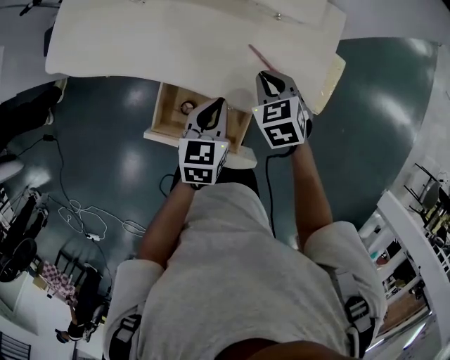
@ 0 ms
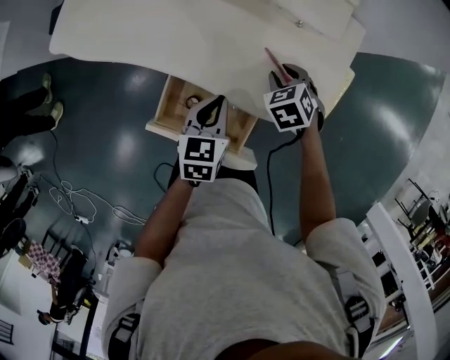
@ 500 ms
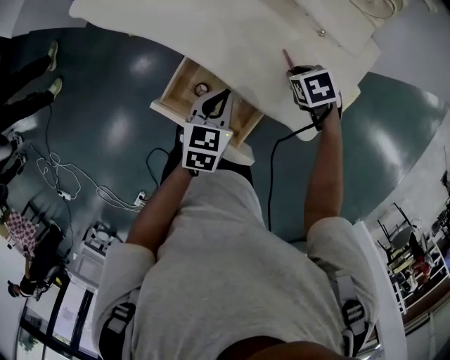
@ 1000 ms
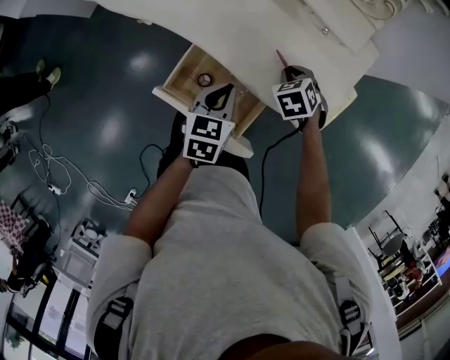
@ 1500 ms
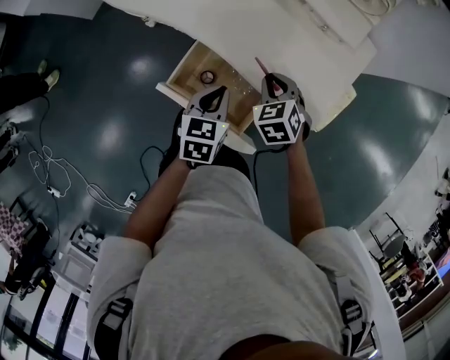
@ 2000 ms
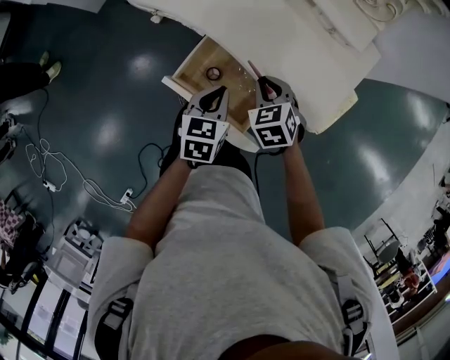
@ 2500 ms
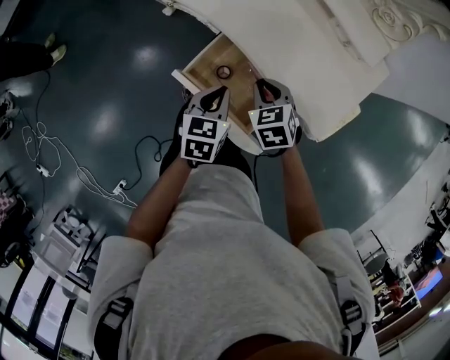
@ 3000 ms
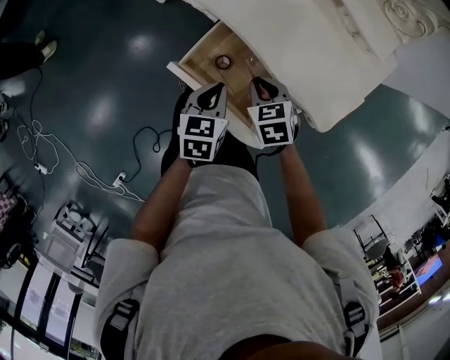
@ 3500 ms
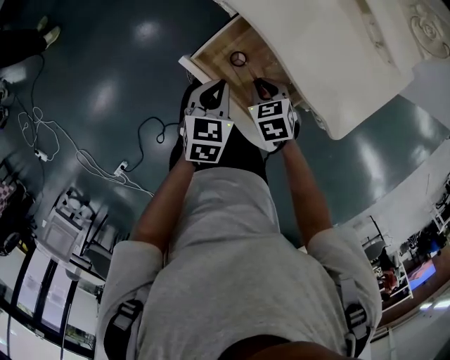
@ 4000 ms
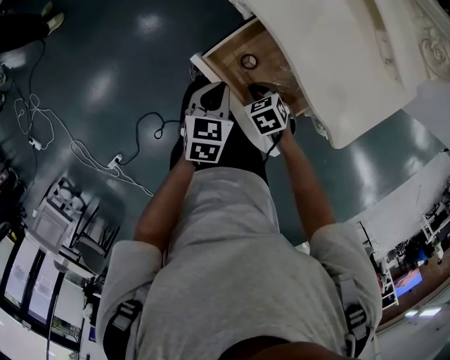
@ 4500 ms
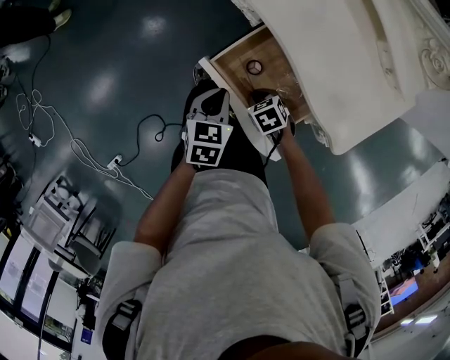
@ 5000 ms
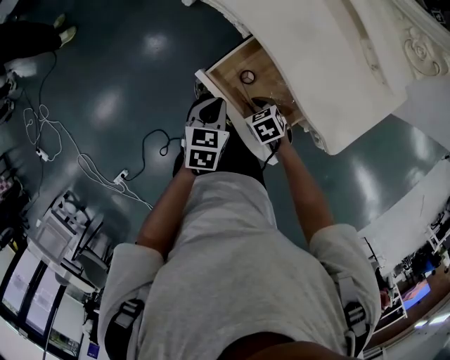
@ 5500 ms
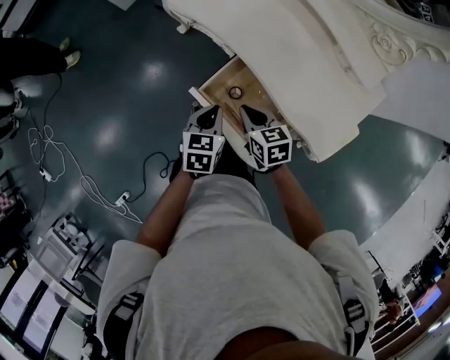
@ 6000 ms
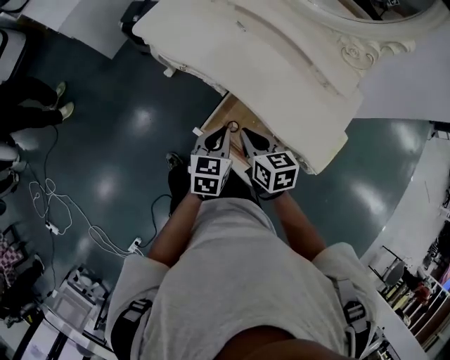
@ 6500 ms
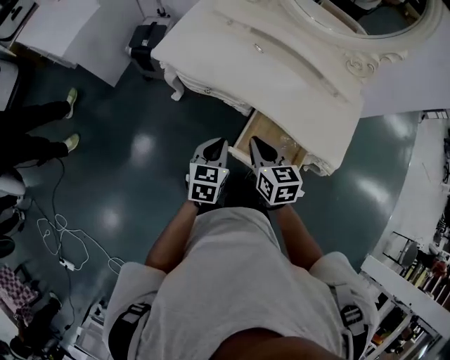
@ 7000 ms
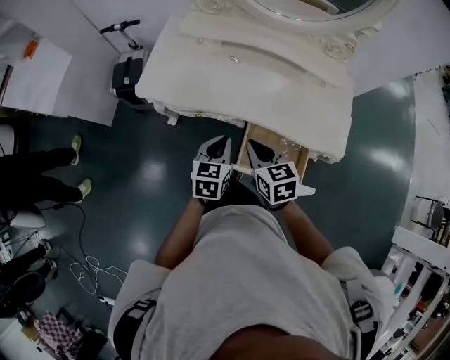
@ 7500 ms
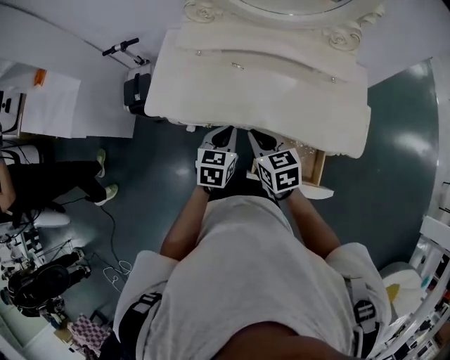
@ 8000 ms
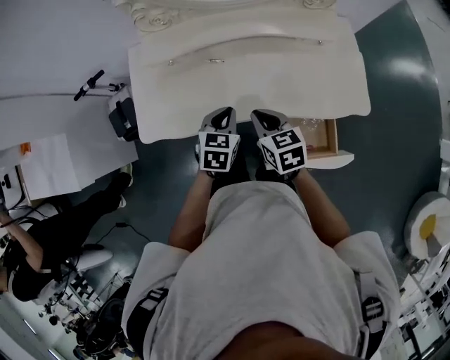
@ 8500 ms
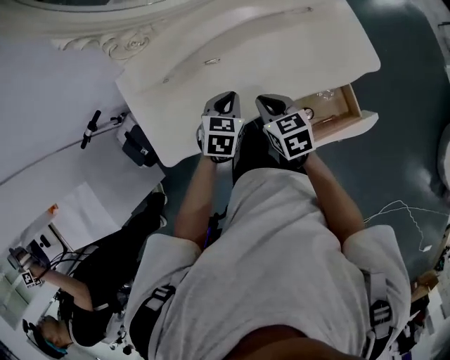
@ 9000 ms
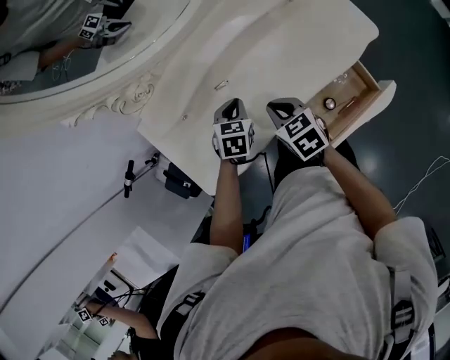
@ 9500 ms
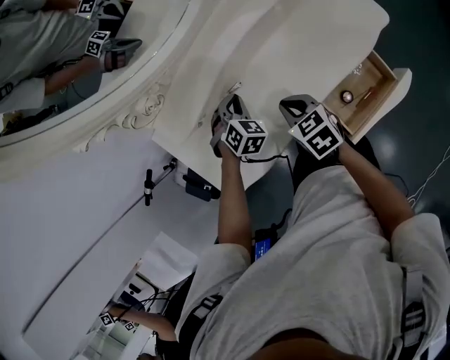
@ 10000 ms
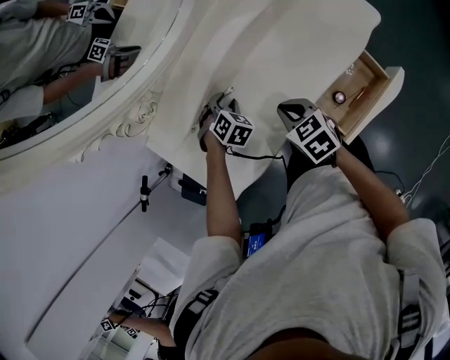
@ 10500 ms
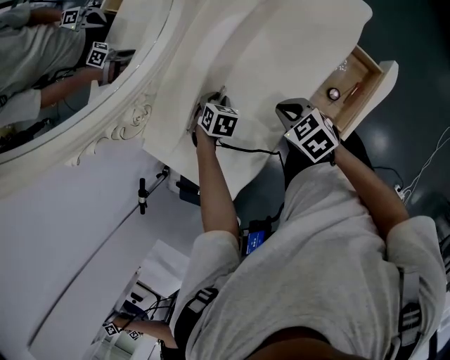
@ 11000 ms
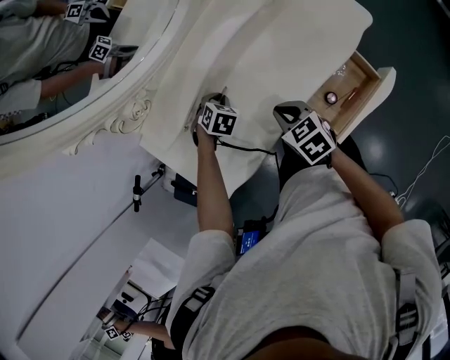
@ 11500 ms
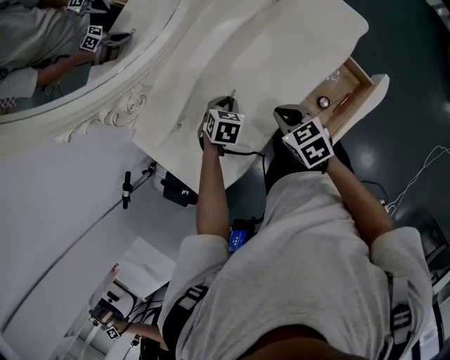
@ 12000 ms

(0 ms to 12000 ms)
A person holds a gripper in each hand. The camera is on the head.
0 ms - 2000 ms: The right gripper changes place by roughly 10 cm. Meanwhile the left gripper moves about 10 cm.
2000 ms - 4000 ms: The right gripper travels to the left, downward and backward by about 15 cm. The left gripper heads to the left and downward, covering approximately 10 cm.
4000 ms - 6000 ms: The left gripper heads upward, covering some 5 cm. The right gripper shifts approximately 10 cm upward, and turns by approximately 30 degrees.
6000 ms - 8000 ms: The left gripper moves approximately 25 cm, and turns by roughly 40 degrees, while the right gripper moves approximately 25 cm, and swivels approximately 30 degrees.
8000 ms - 10000 ms: The right gripper moves about 20 cm, and rotates approximately 40 degrees, while the left gripper ends up some 30 cm from where it was, and rotates around the line of its fingers by approximately 70 degrees, clockwise from behind.
10000 ms - 12000 ms: The right gripper shifts by roughly 5 cm. Meanwhile the left gripper moves roughly 5 cm, swivels approximately 20 degrees, and opens and closes again.

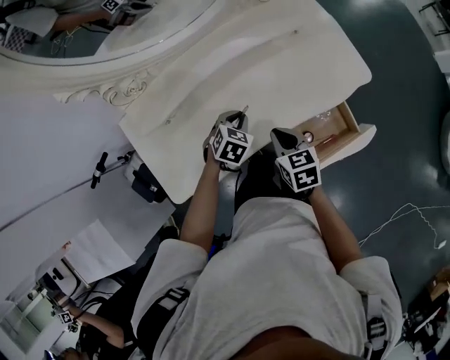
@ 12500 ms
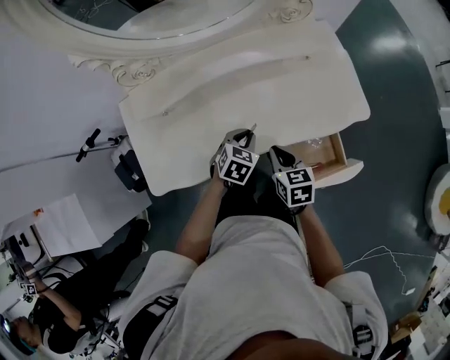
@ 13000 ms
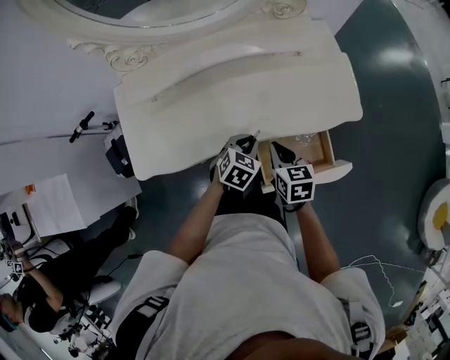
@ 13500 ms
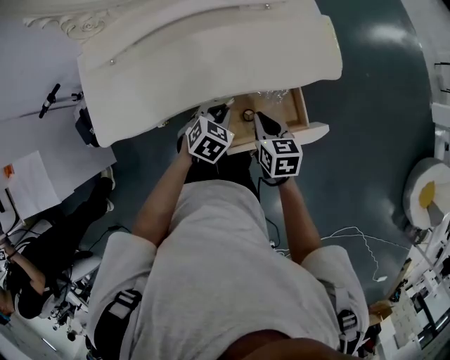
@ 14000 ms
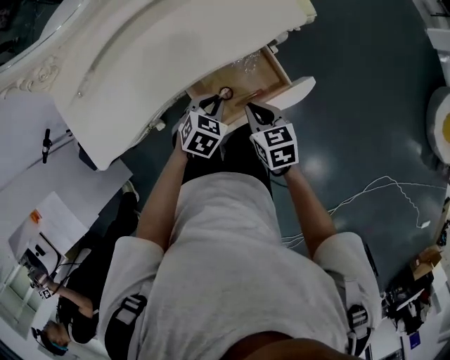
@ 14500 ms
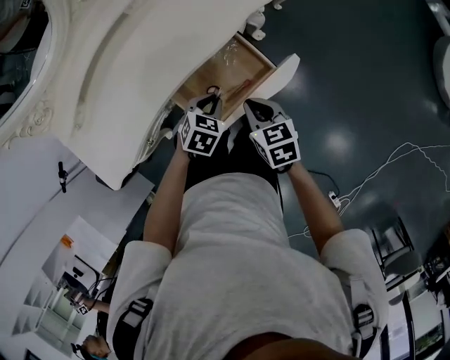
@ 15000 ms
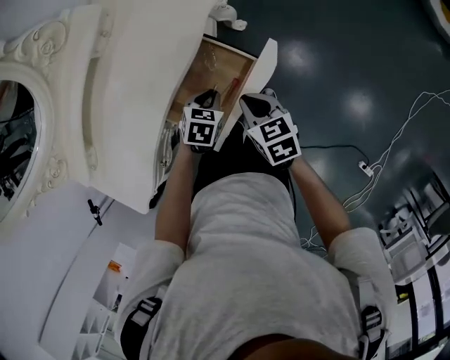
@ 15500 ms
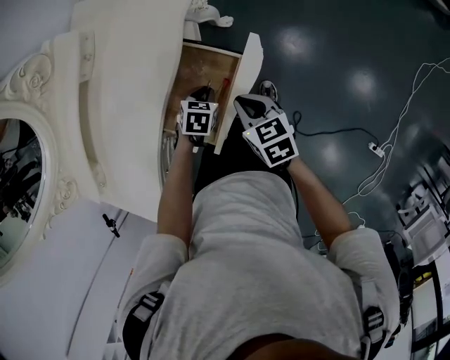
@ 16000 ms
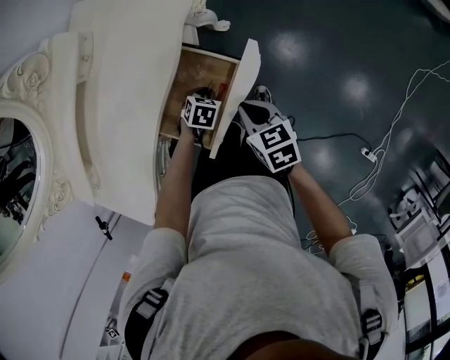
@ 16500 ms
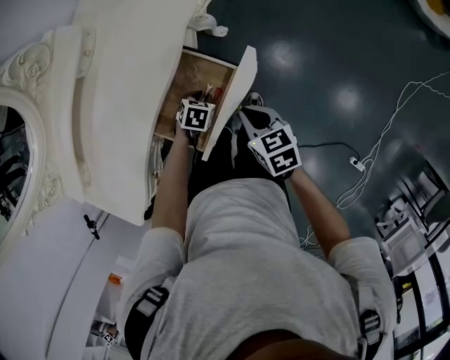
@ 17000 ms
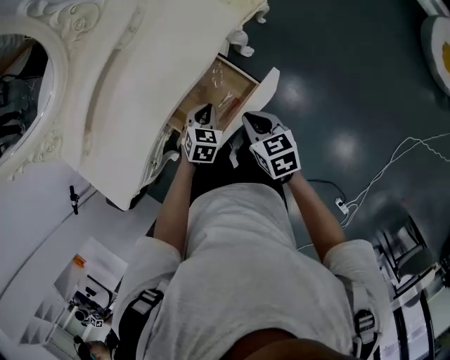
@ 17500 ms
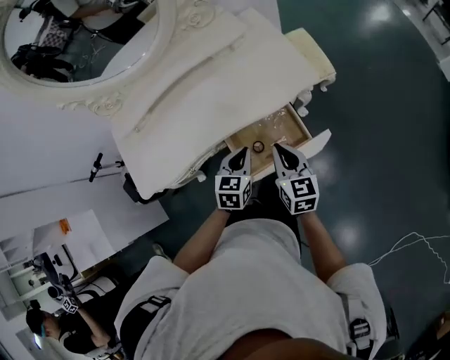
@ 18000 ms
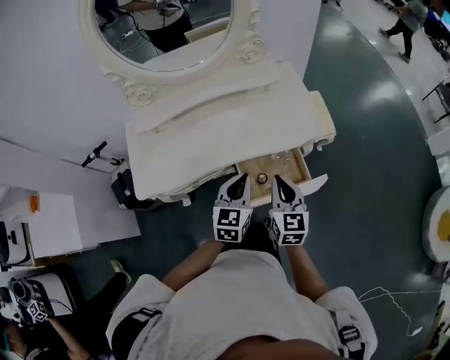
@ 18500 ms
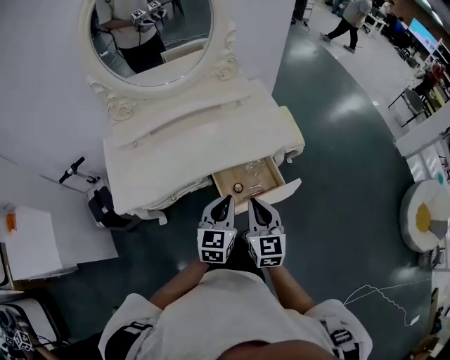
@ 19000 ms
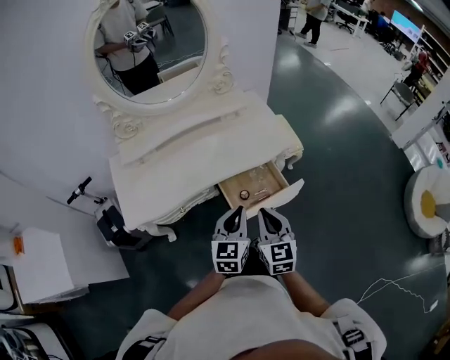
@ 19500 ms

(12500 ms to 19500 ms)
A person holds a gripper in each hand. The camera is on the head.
12500 ms - 14500 ms: The grippers both shift to the right and backward by some 25 cm.
14500 ms - 16000 ms: The right gripper is displaced to the right by some 10 cm, and swivels about 30 degrees; the left gripper travels downward and to the right by about 15 cm, and turns by about 20 degrees.
16000 ms - 17500 ms: The right gripper moves about 5 cm, while the left gripper is displaced upward by approximately 10 cm, and changes its angle by some 20 degrees.
17500 ms - 19500 ms: The left gripper shifts approximately 35 cm upward, backward and to the left, and angles its fingers upward, by approximately 40 degrees. Meanwhile the right gripper heads upward, to the left and backward, covering some 30 cm, and swivels approximately 40 degrees.

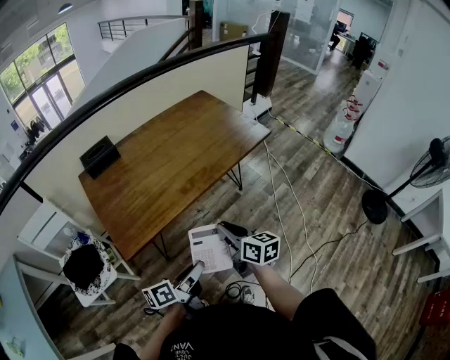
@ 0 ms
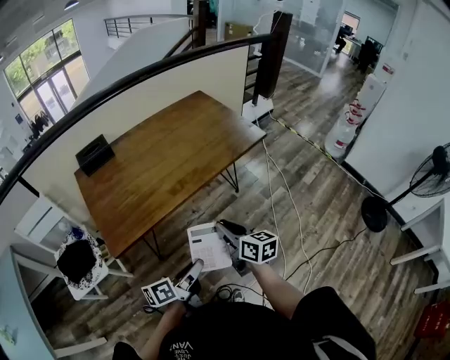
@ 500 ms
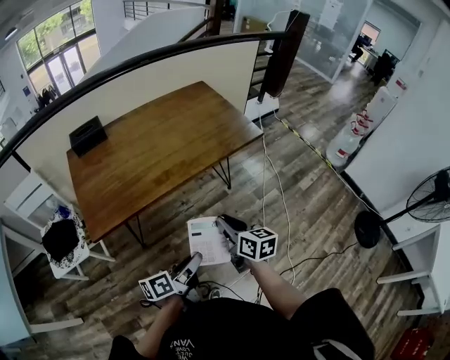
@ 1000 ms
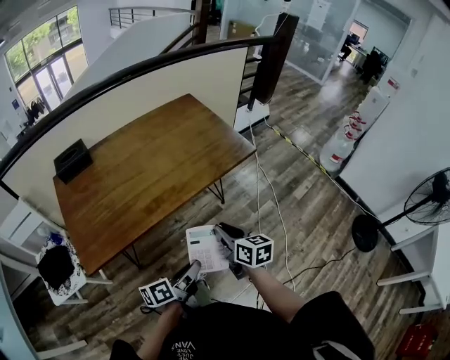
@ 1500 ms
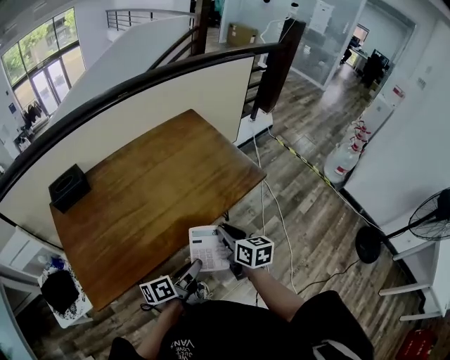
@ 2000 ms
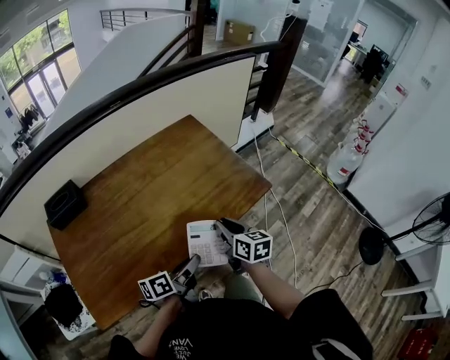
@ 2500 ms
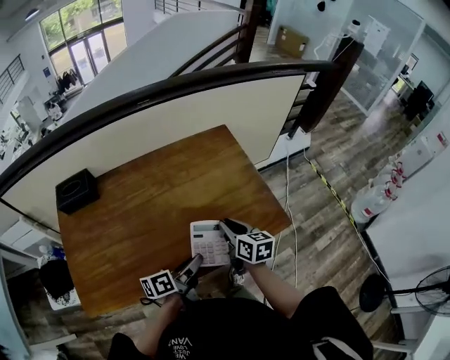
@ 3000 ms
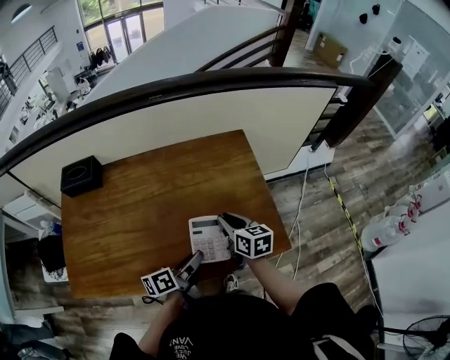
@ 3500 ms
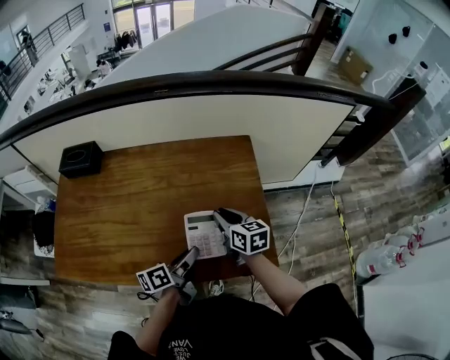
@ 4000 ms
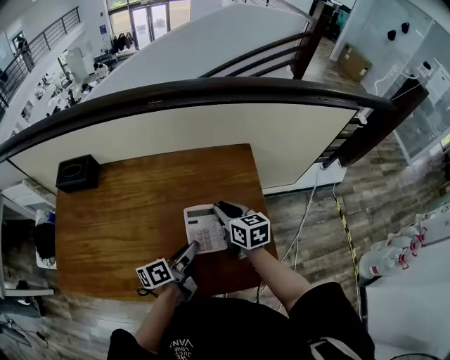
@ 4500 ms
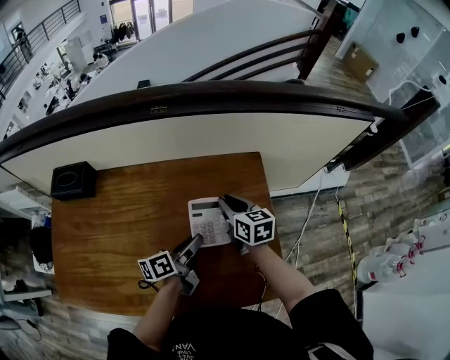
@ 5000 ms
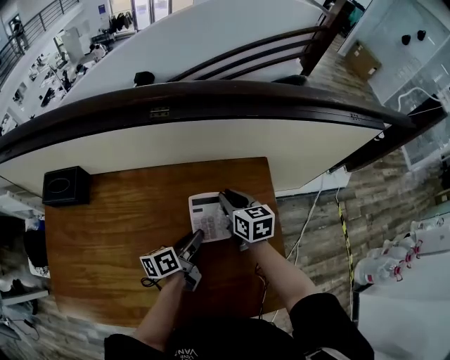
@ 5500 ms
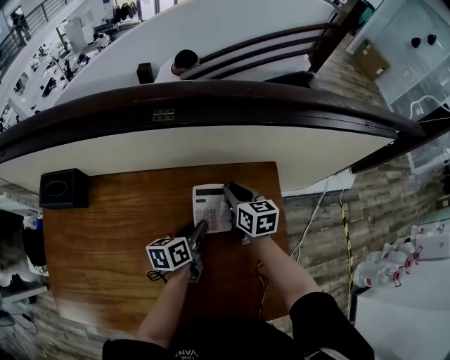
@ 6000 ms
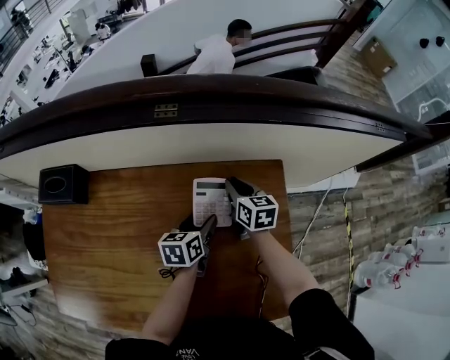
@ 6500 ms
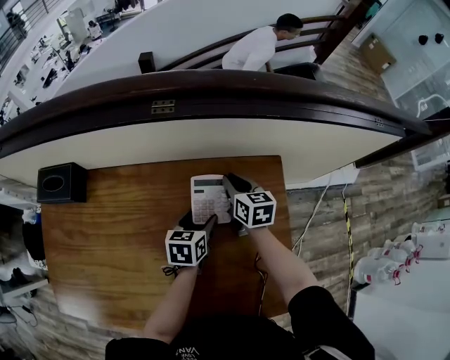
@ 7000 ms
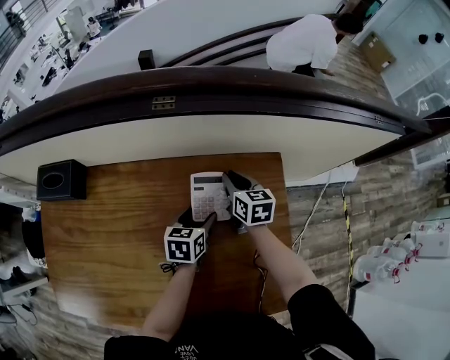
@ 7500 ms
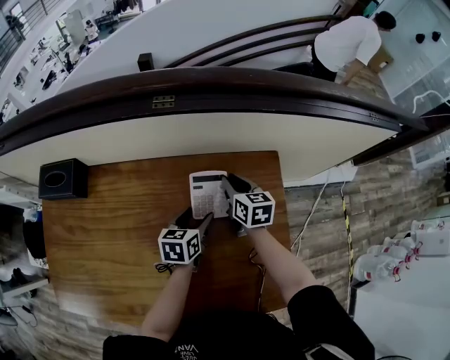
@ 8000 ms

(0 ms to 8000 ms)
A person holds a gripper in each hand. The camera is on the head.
0 ms - 2000 ms: Both grippers travel together forward and to the right, about 30 cm.
2000 ms - 4000 ms: The left gripper moves roughly 30 cm, and rotates some 30 degrees; the right gripper changes place by approximately 30 cm, and turns by some 40 degrees.
4000 ms - 6000 ms: The two grippers go roughly 25 cm forward. The left gripper rotates approximately 20 degrees.
6000 ms - 8000 ms: The left gripper opens.
